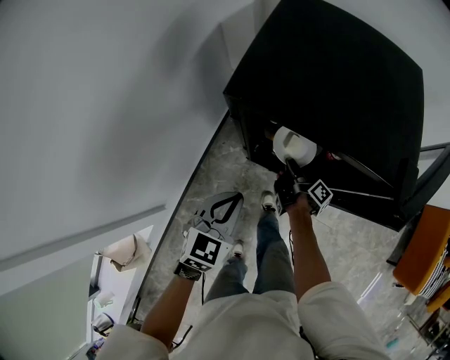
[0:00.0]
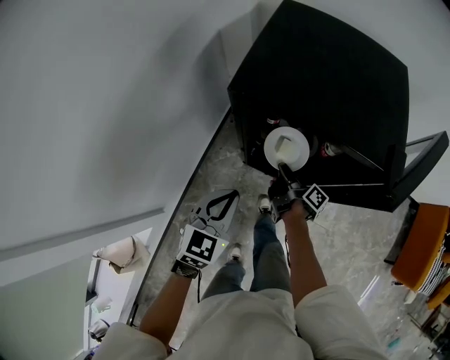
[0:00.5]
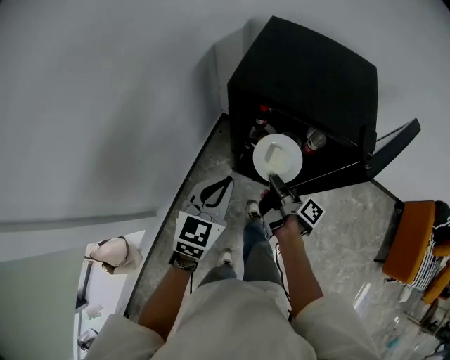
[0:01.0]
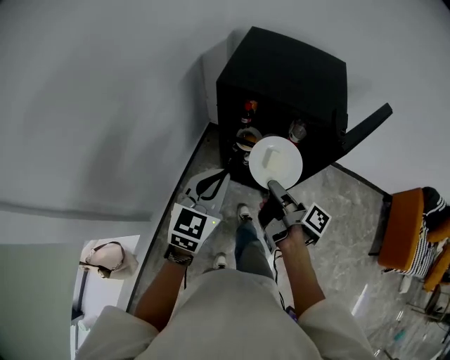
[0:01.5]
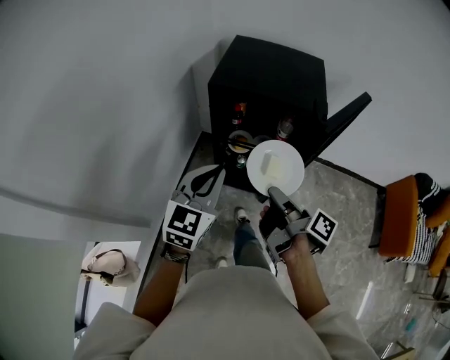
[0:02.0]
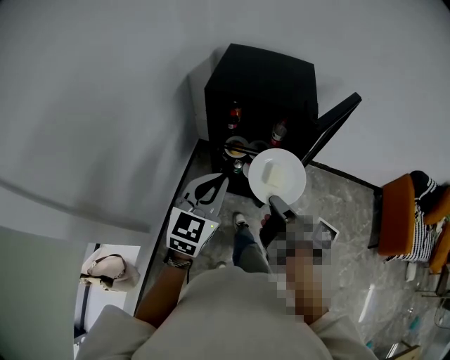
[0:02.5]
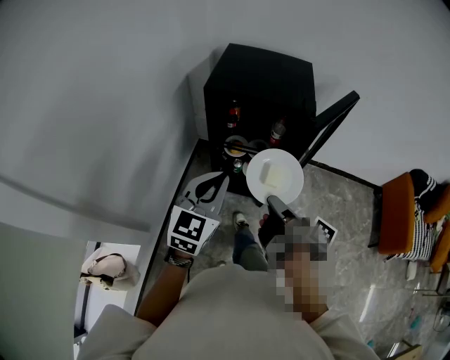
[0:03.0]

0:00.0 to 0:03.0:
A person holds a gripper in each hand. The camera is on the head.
0:00.0 to 0:01.5: The left gripper goes some 15 cm upward and backward. Meanwhile the right gripper heads upward and backward, covering approximately 35 cm.
0:01.5 to 0:03.0: The right gripper goes roughly 15 cm backward and upward. The left gripper moves backward and upward, some 10 cm.

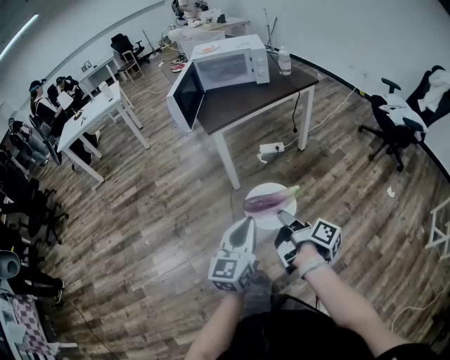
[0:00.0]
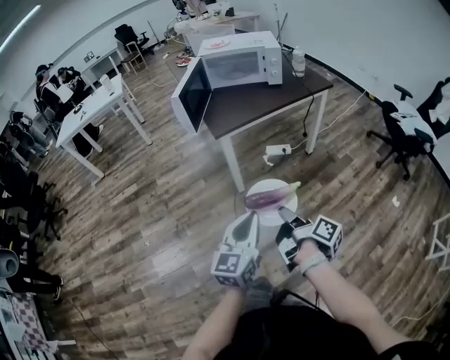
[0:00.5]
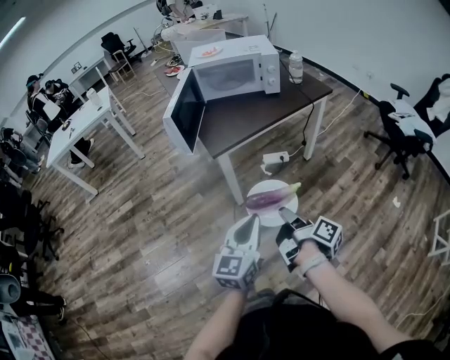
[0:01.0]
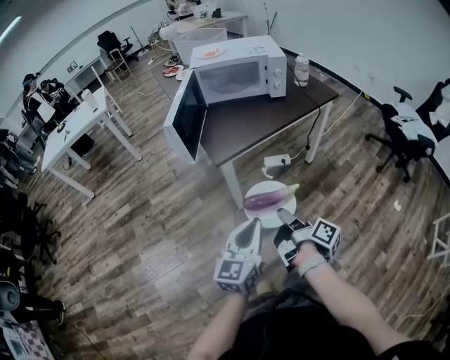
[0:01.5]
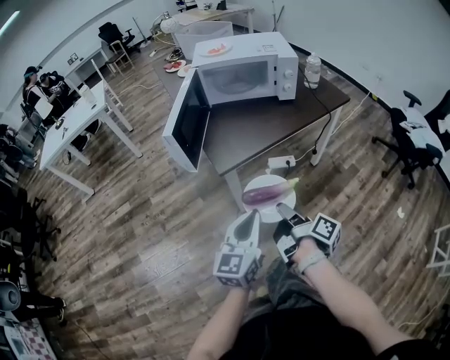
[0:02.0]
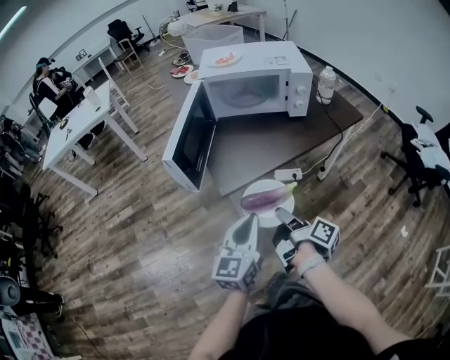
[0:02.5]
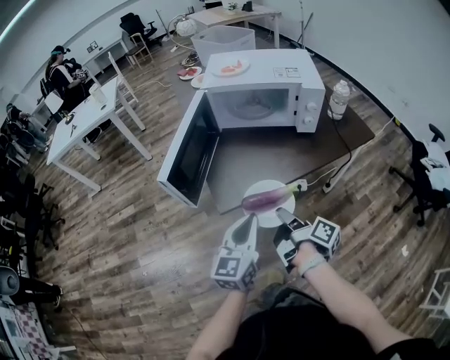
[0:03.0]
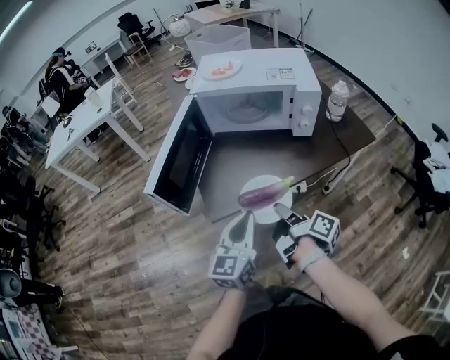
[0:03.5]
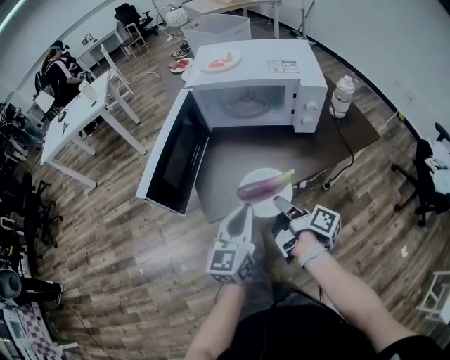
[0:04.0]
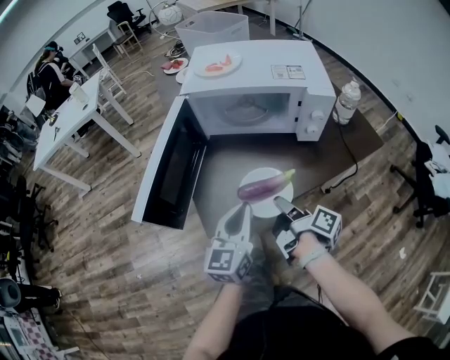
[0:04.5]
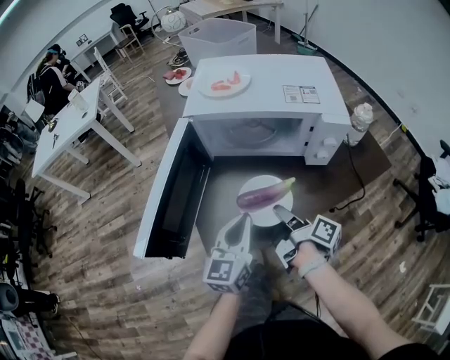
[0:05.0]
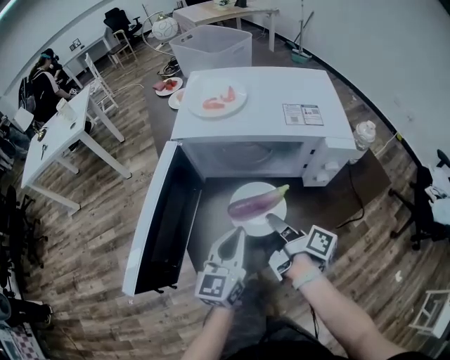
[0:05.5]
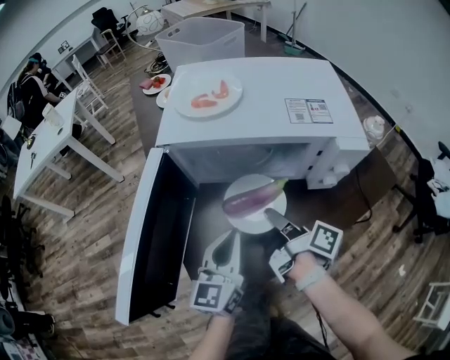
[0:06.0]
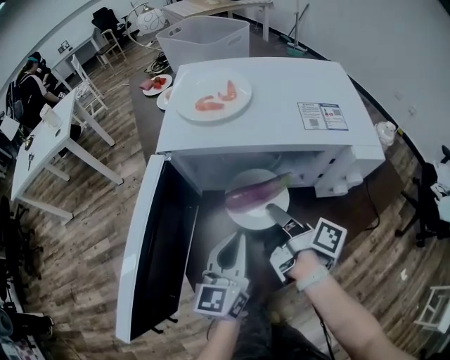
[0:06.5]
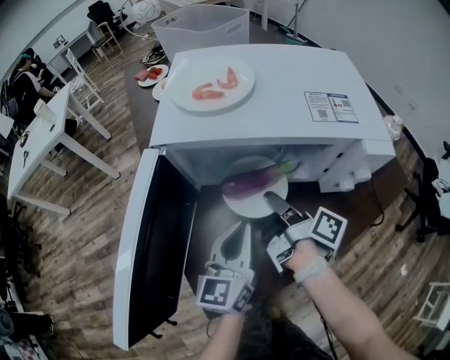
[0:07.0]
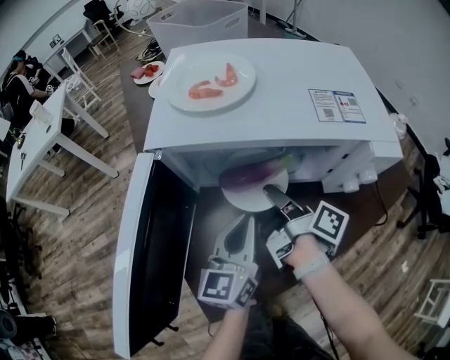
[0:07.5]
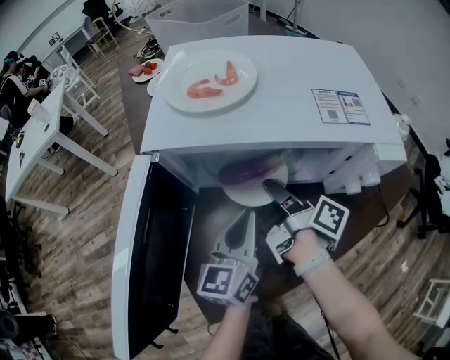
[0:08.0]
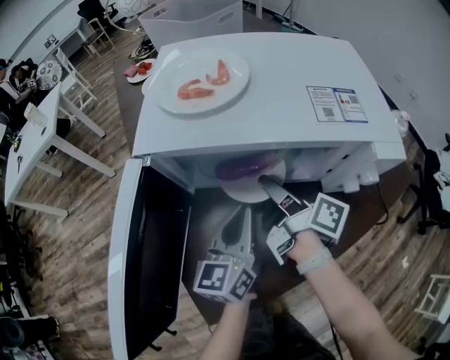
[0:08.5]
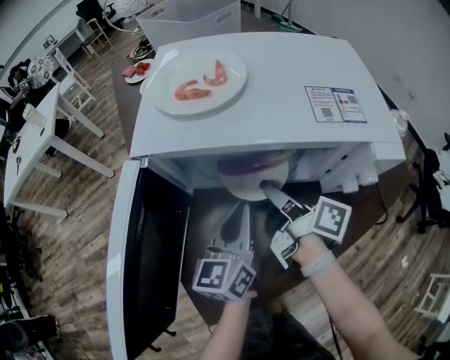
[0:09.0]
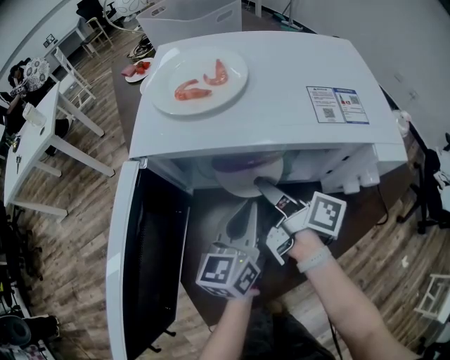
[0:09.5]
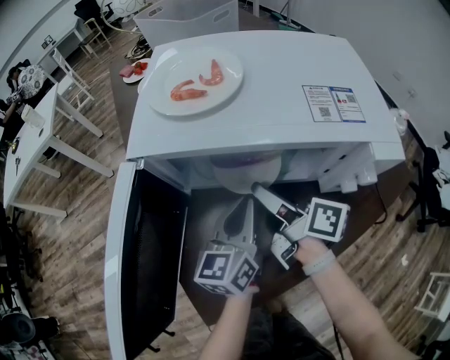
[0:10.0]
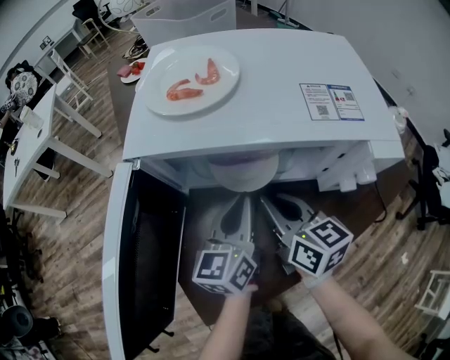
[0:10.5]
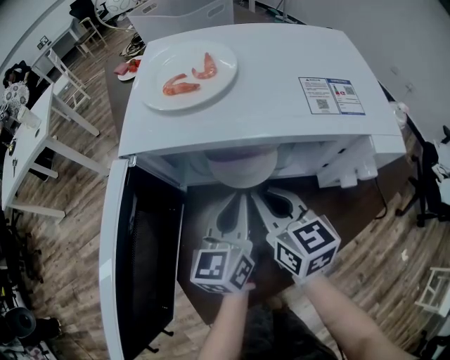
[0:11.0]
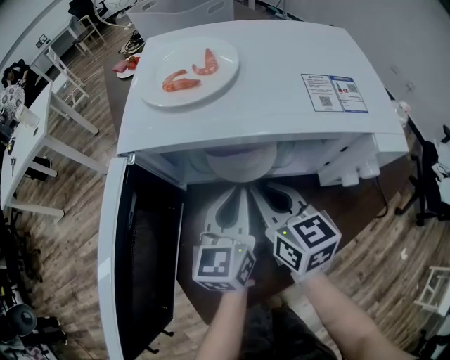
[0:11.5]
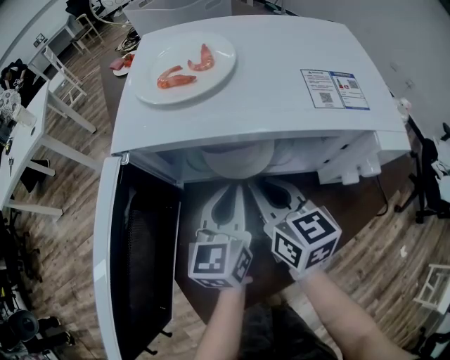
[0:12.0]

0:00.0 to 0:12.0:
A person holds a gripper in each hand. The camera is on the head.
0:00.0 to 0:02.0: The two grippers go approximately 30 cm forward.
0:02.0 to 0:04.0: The grippers both shift forward by some 25 cm.
0:04.0 to 0:06.0: Both grippers travel together forward, approximately 20 cm.
0:06.0 to 0:08.0: Both grippers move forward, approximately 10 cm.
0:08.0 to 0:10.0: The right gripper changes its angle by some 30 degrees, and opens its fingers.
0:10.0 to 0:12.0: The right gripper rotates around the line of its fingers by approximately 50 degrees, counterclockwise from behind, and closes.

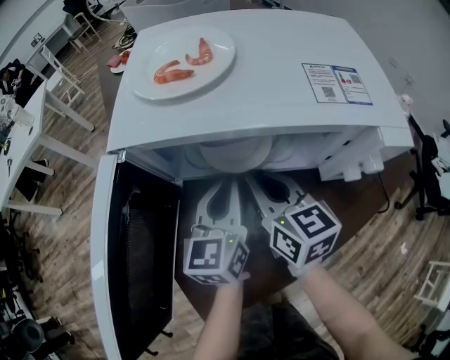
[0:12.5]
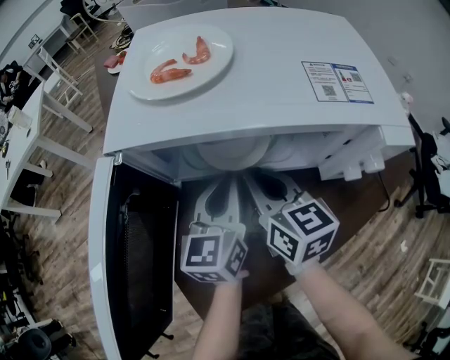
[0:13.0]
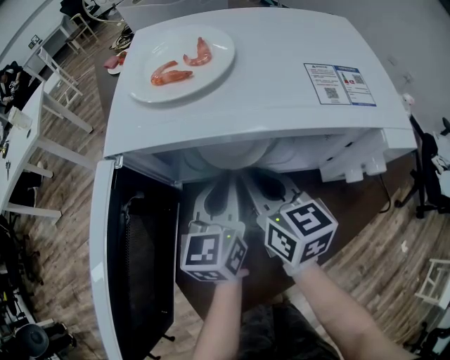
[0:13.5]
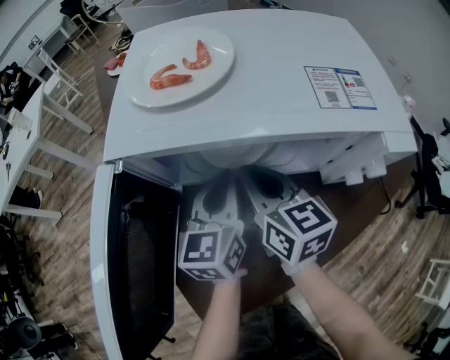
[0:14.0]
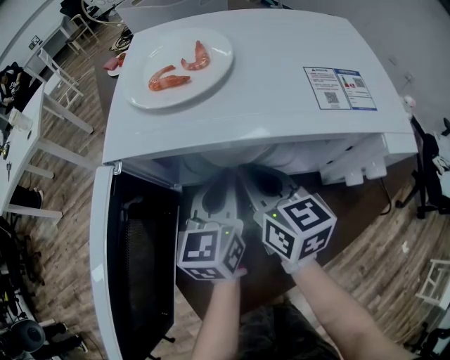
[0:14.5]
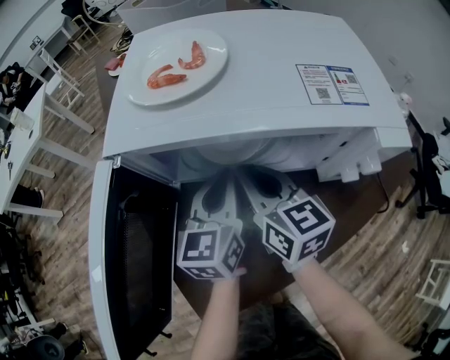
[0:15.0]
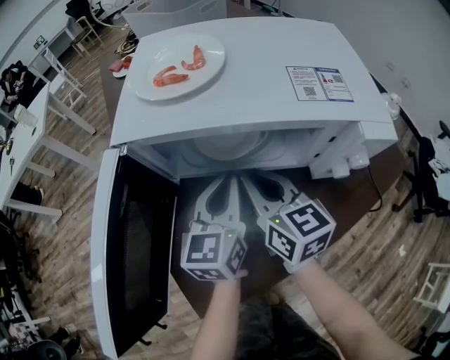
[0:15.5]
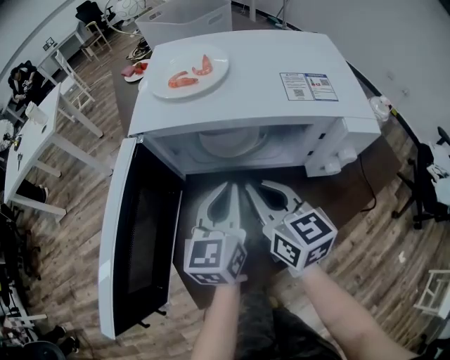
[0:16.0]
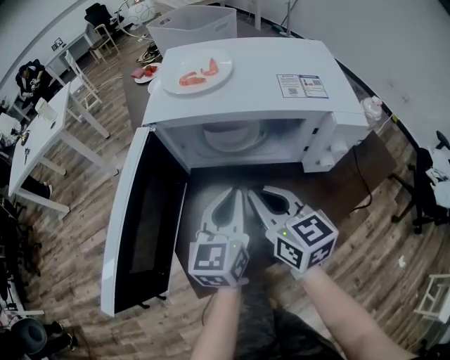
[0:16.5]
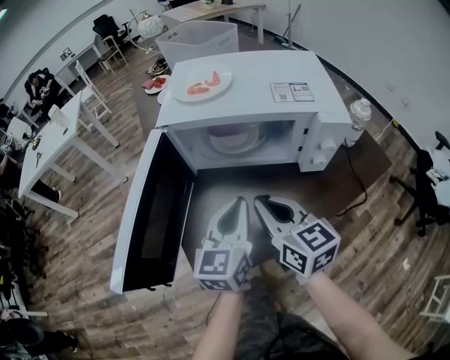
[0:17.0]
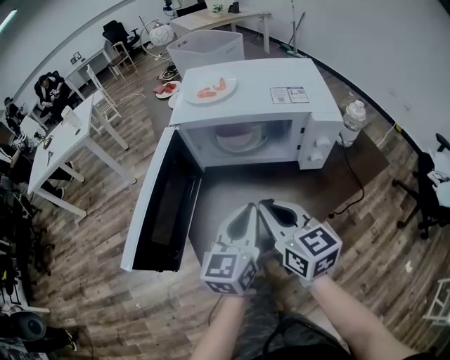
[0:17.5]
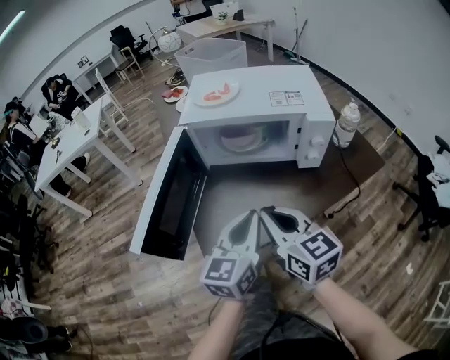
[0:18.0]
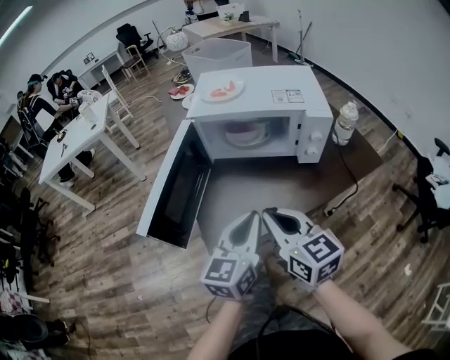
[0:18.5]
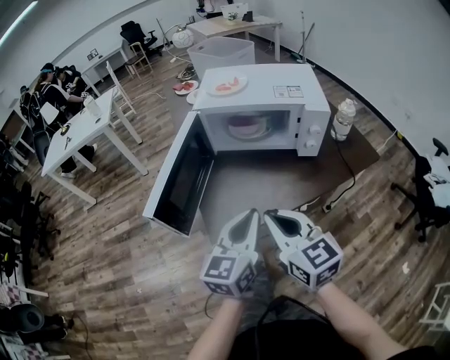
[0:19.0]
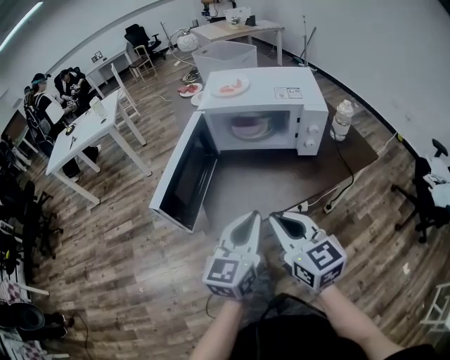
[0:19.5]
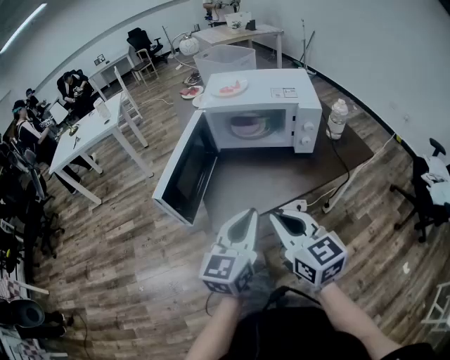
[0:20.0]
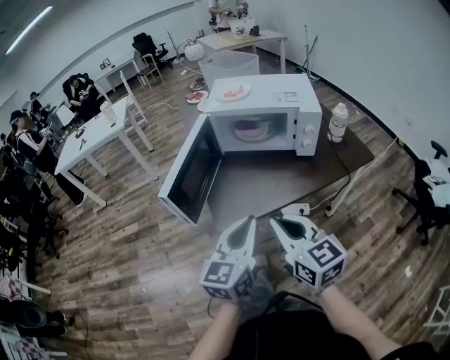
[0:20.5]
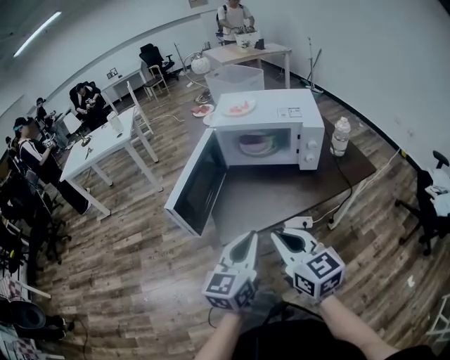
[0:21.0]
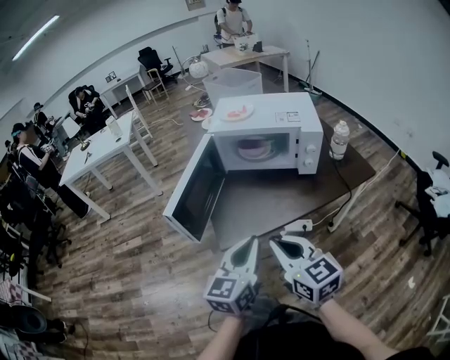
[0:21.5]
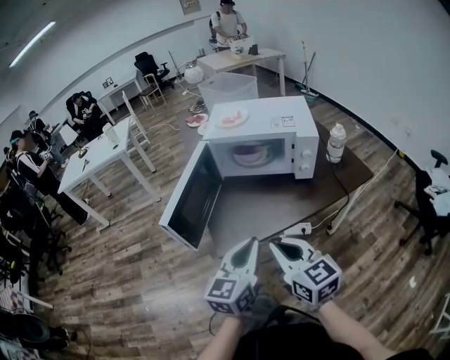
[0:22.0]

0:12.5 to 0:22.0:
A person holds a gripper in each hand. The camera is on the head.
0:12.5 to 0:14.5: The grippers make only small movements.
0:14.5 to 0:16.5: The two grippers go about 10 cm backward.
0:16.5 to 0:18.0: The left gripper shifts about 15 cm backward, while the right gripper moves backward and upward, about 15 cm.
0:18.0 to 0:20.0: The left gripper travels backward and upward by approximately 15 cm. Meanwhile the right gripper shifts some 15 cm backward.
0:20.0 to 0:22.0: The grippers make only small movements.

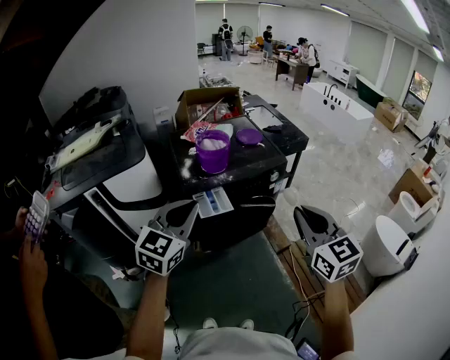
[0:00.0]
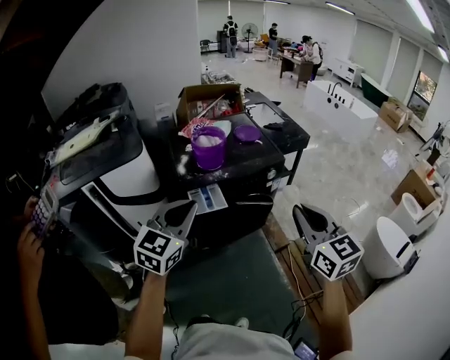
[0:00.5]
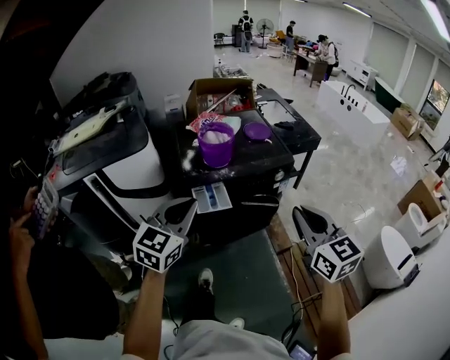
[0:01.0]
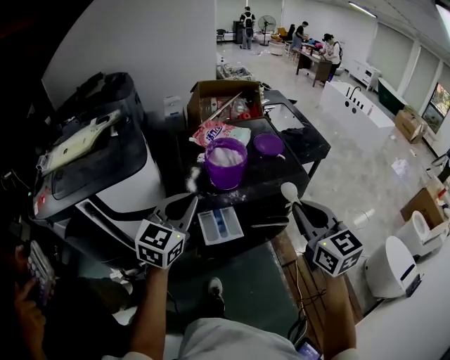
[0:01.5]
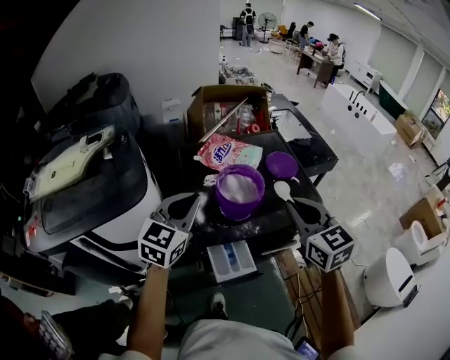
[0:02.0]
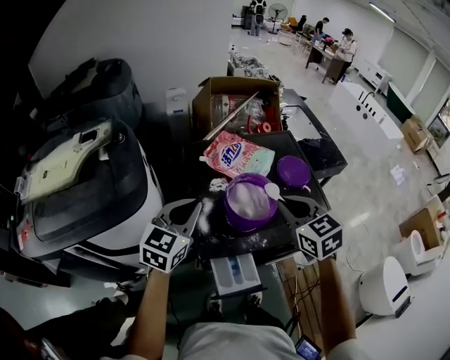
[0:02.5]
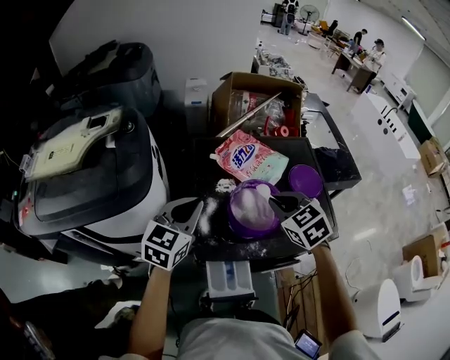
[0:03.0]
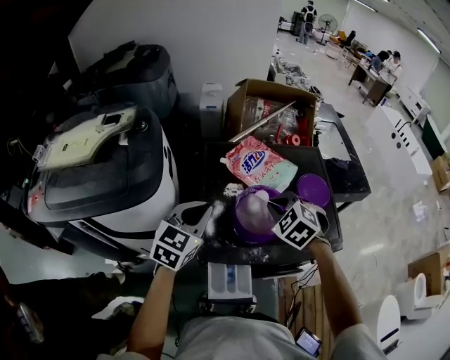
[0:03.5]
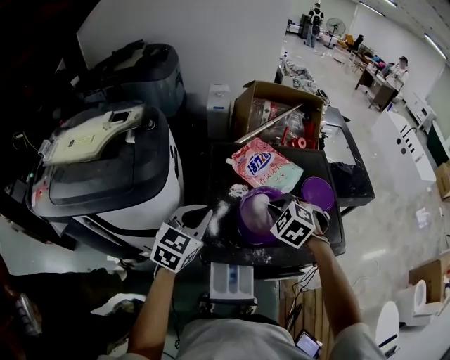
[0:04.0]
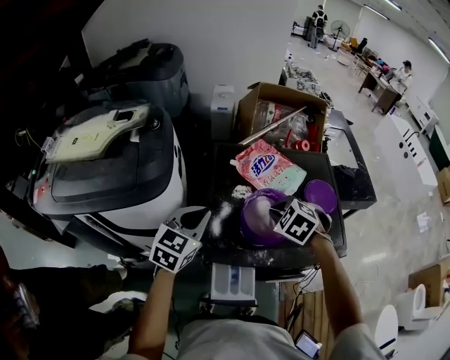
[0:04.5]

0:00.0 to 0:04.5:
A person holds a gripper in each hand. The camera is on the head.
0:00.0 to 0:02.0: The grippers both shift forward by approximately 35 cm.
0:02.0 to 0:04.5: The right gripper travels forward, downward and to the left by roughly 25 cm, and angles its fingers downward, by about 50 degrees. Meanwhile the left gripper travels downward and forward by about 10 cm.
